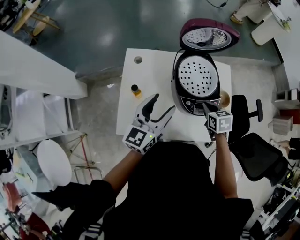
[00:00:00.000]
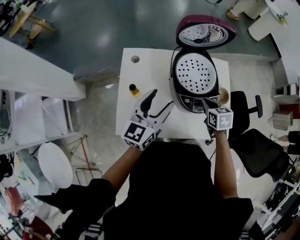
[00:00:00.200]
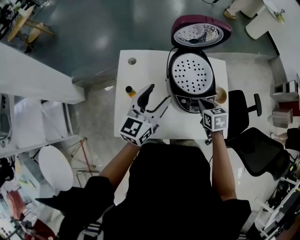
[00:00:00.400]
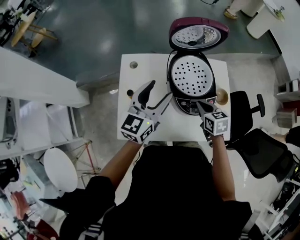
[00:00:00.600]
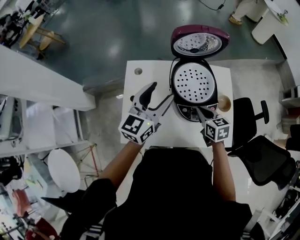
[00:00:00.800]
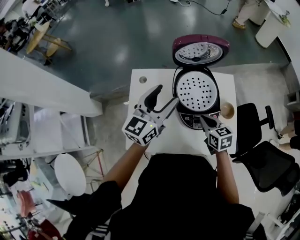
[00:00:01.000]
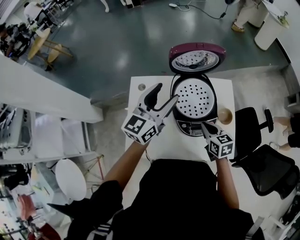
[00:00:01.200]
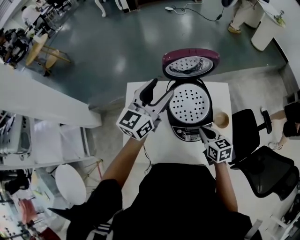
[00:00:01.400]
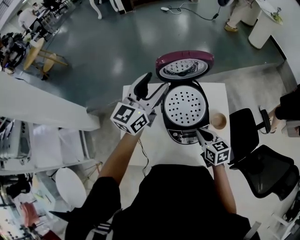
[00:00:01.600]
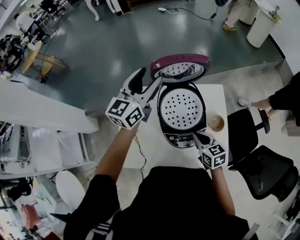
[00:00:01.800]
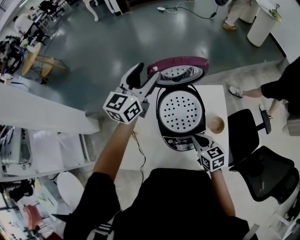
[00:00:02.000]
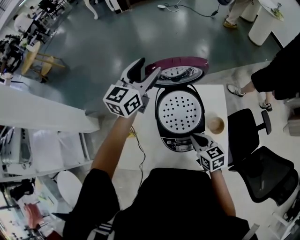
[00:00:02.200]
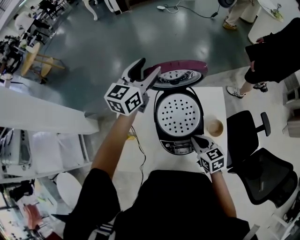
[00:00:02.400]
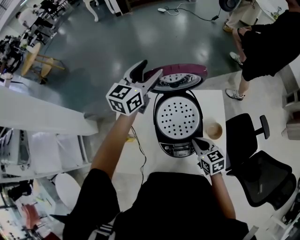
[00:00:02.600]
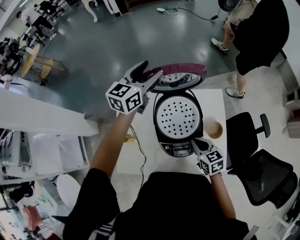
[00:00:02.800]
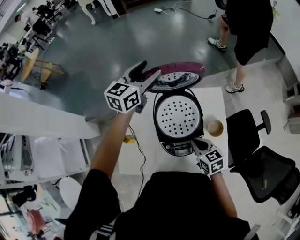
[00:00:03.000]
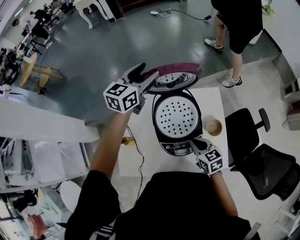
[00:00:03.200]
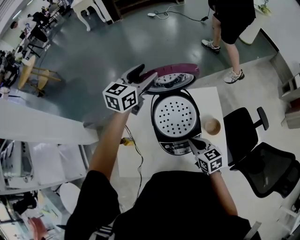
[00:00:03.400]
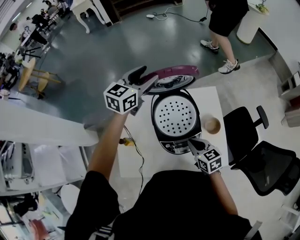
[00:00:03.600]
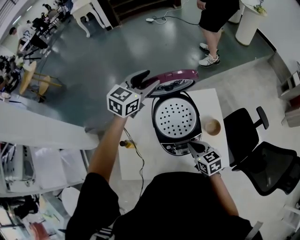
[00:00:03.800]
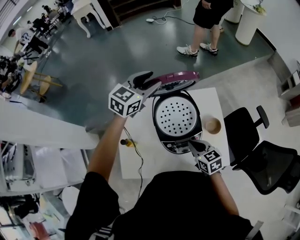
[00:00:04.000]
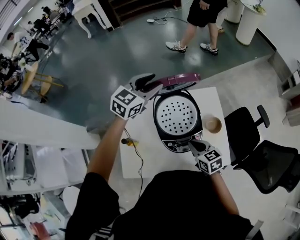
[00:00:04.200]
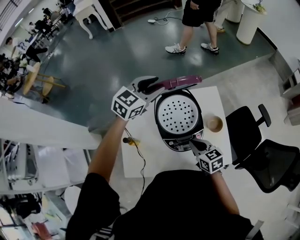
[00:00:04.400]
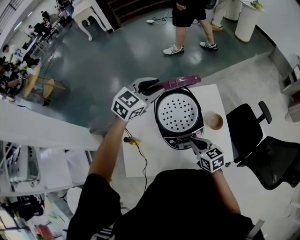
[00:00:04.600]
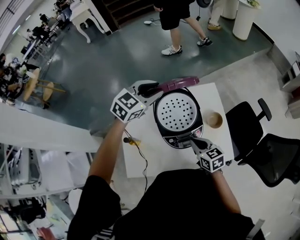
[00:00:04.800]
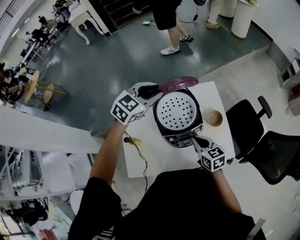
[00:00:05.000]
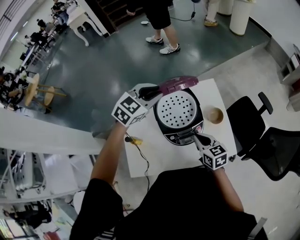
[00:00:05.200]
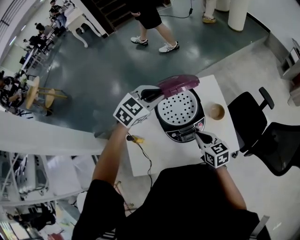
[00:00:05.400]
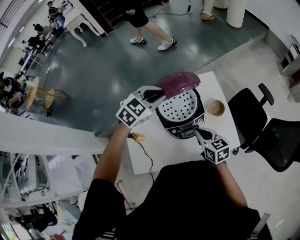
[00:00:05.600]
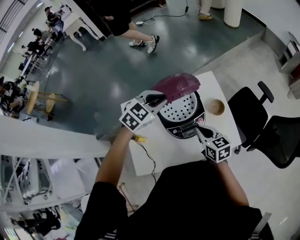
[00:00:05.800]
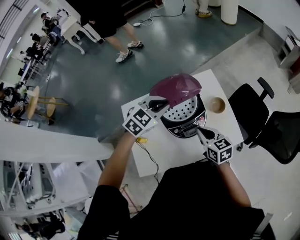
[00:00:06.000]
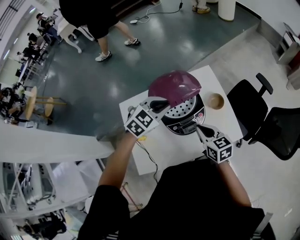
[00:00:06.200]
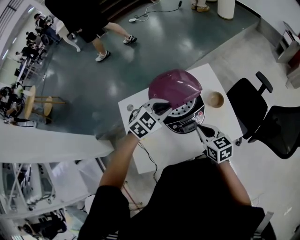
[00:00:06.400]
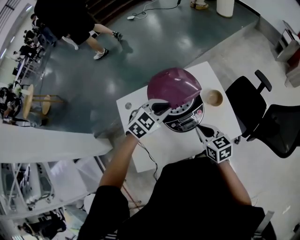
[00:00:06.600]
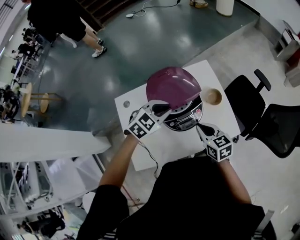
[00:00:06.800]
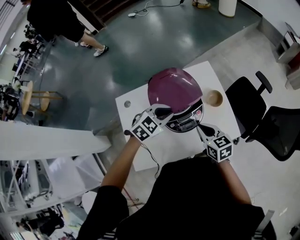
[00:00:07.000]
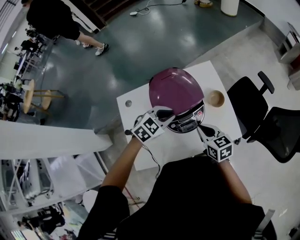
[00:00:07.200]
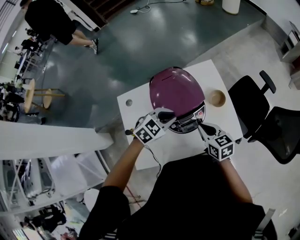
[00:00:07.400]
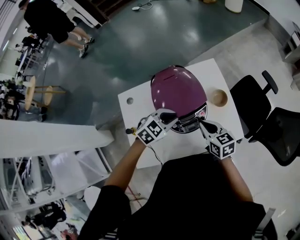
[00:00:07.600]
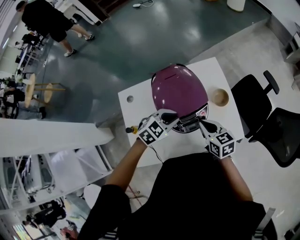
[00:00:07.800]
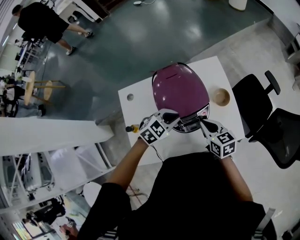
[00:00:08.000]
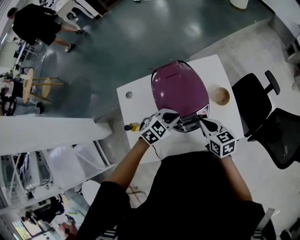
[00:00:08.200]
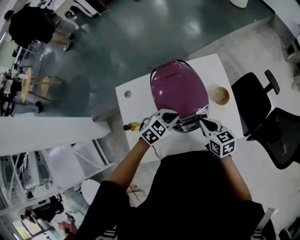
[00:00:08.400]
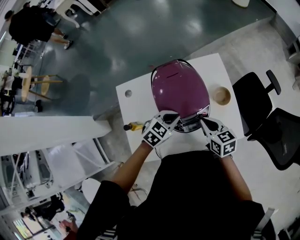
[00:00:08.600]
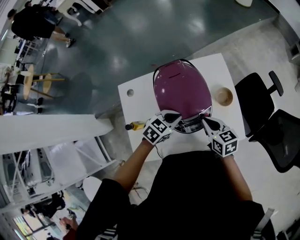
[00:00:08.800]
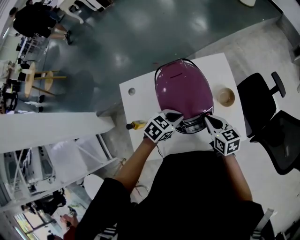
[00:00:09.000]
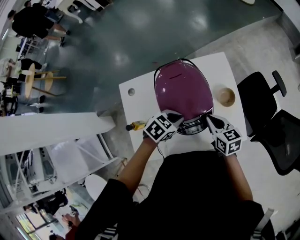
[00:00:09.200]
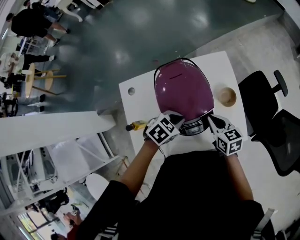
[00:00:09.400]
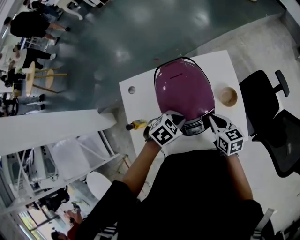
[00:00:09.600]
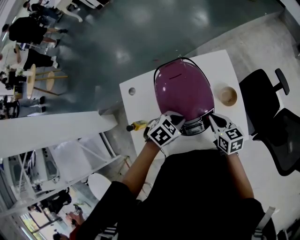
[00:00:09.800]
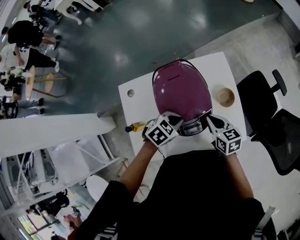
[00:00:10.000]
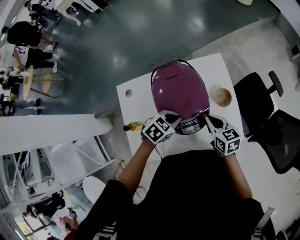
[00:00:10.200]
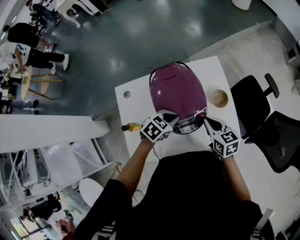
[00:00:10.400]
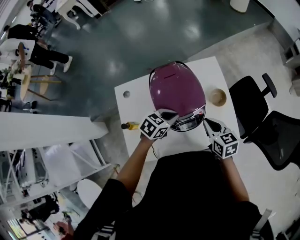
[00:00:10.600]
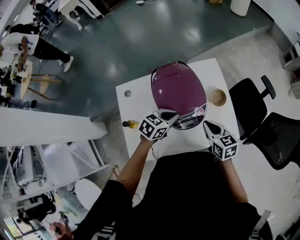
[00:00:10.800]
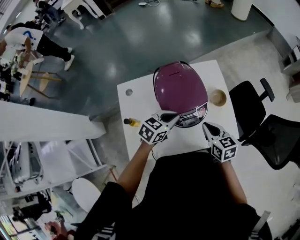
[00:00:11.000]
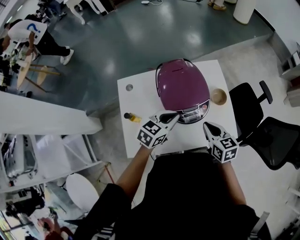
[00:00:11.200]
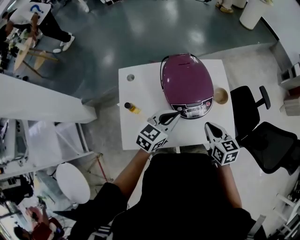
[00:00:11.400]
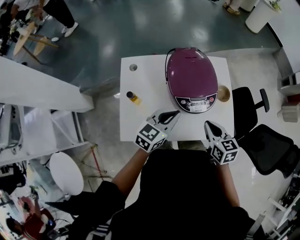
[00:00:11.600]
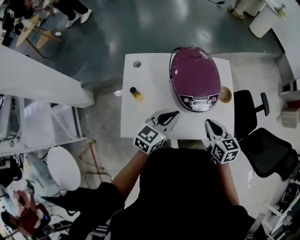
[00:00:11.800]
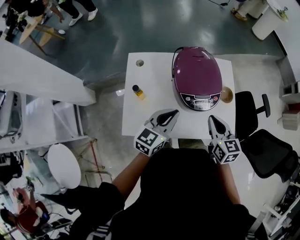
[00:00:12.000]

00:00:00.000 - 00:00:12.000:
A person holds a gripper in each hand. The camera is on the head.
00:00:00.000 - 00:00:01.600: The right gripper ends up some 5 cm from where it was, and rotates about 20 degrees. Meanwhile the left gripper travels forward and upward by roughly 25 cm.
00:00:01.600 - 00:00:03.000: The left gripper moves forward, approximately 15 cm.
00:00:03.000 - 00:00:04.400: The left gripper moves backward, about 10 cm, changes its angle by roughly 30 degrees, and closes up.
00:00:04.400 - 00:00:06.000: The left gripper heads backward, downward and to the right, covering about 15 cm, turns by about 20 degrees, and closes its fingers.
00:00:06.000 - 00:00:07.600: The left gripper moves downward and backward, roughly 10 cm.
00:00:07.600 - 00:00:09.000: The left gripper turns by roughly 20 degrees.
00:00:09.000 - 00:00:10.400: The grippers make only small movements.
00:00:10.400 - 00:00:12.000: The right gripper heads backward and upward, covering about 10 cm. Meanwhile the left gripper moves backward, upward and to the left, some 20 cm, and points its fingers roughly 40 degrees further upward.

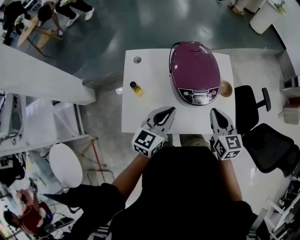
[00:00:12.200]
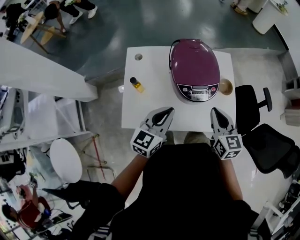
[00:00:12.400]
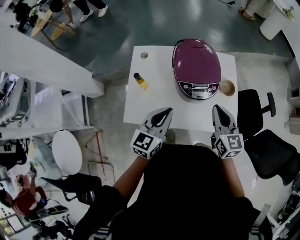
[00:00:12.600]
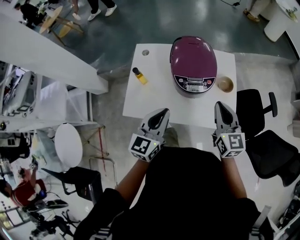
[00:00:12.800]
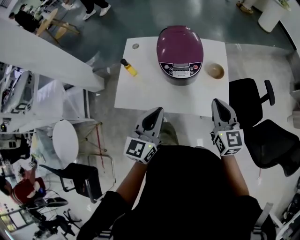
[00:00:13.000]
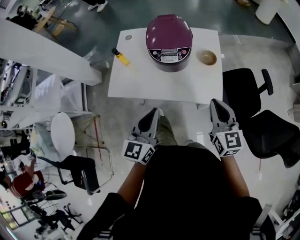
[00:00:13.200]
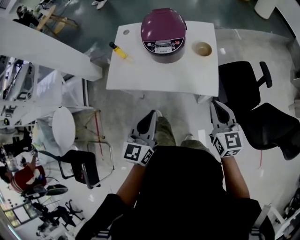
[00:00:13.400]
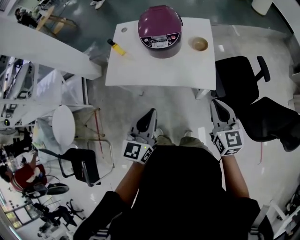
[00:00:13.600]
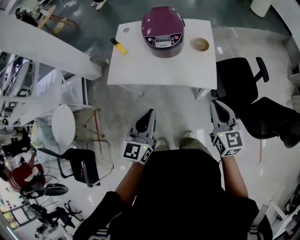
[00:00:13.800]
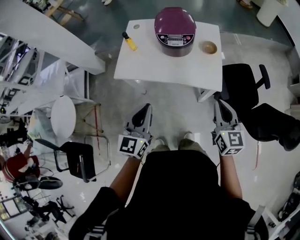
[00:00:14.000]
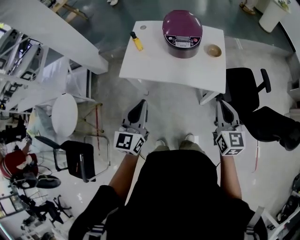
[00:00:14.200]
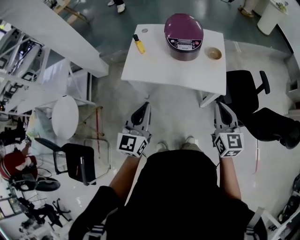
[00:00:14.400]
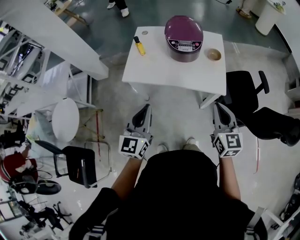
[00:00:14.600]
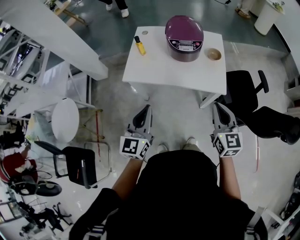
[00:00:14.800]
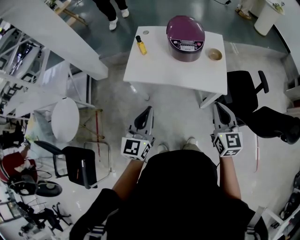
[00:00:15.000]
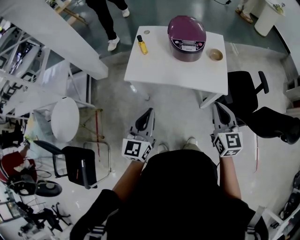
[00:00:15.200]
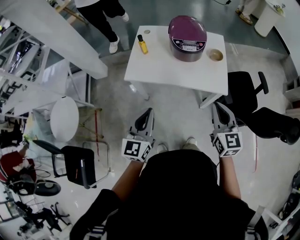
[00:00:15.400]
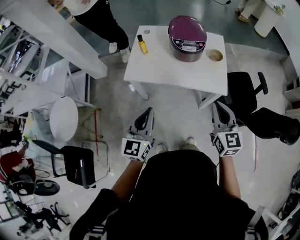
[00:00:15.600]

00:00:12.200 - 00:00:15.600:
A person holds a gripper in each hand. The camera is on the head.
00:00:12.200 - 00:00:13.800: Both grippers travel together backward and to the right, approximately 35 cm. The left gripper turns by approximately 20 degrees.
00:00:13.800 - 00:00:15.600: Both grippers move to the left, approximately 15 cm.

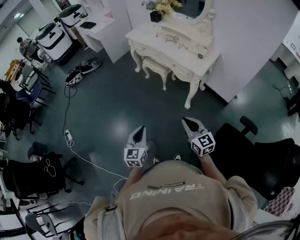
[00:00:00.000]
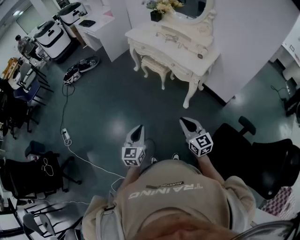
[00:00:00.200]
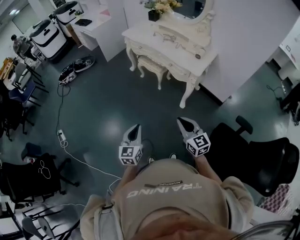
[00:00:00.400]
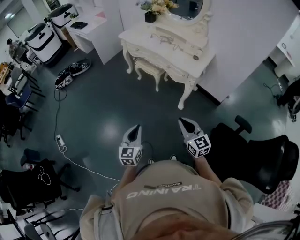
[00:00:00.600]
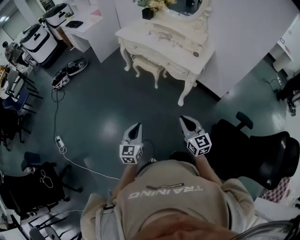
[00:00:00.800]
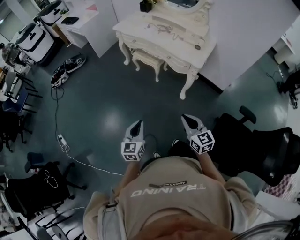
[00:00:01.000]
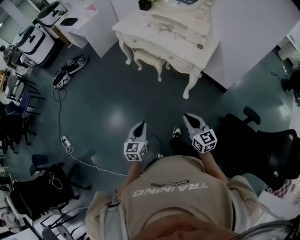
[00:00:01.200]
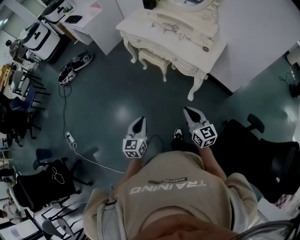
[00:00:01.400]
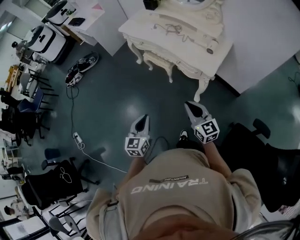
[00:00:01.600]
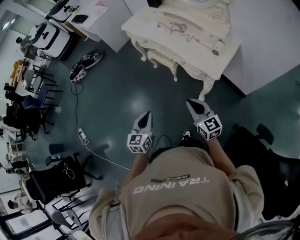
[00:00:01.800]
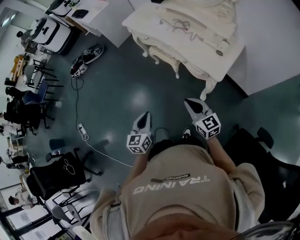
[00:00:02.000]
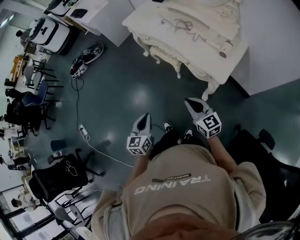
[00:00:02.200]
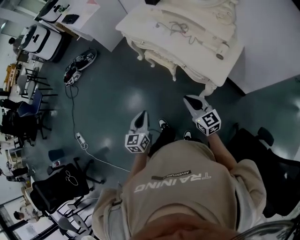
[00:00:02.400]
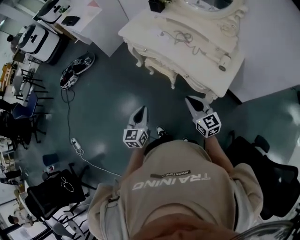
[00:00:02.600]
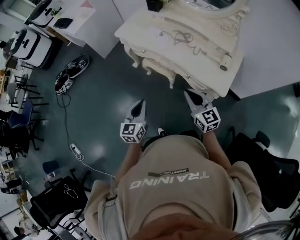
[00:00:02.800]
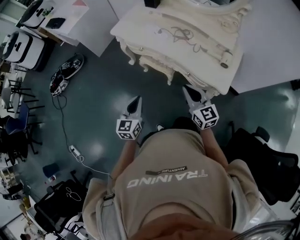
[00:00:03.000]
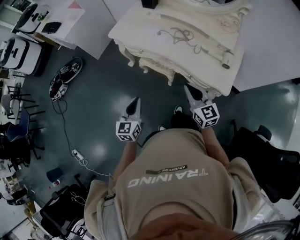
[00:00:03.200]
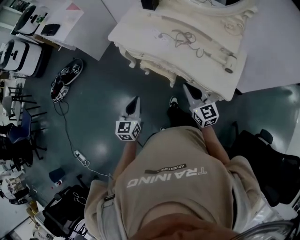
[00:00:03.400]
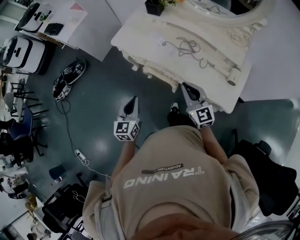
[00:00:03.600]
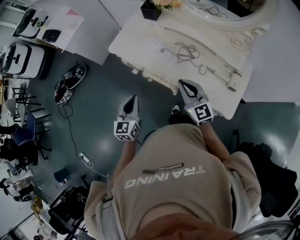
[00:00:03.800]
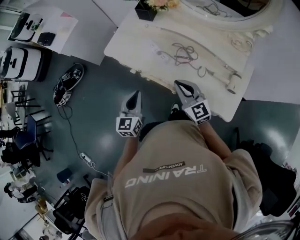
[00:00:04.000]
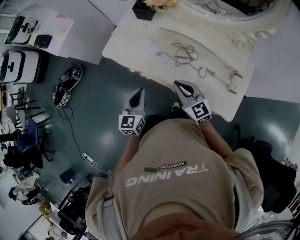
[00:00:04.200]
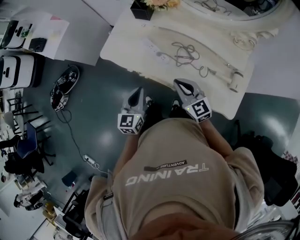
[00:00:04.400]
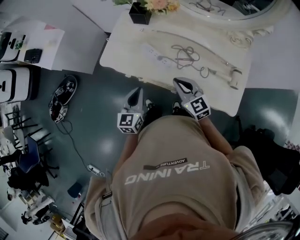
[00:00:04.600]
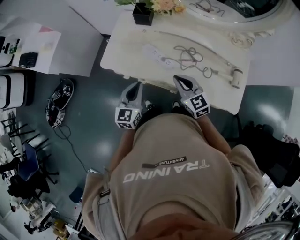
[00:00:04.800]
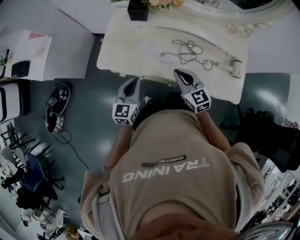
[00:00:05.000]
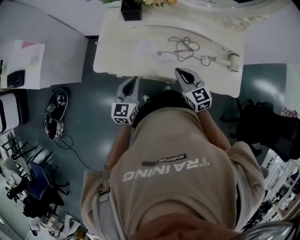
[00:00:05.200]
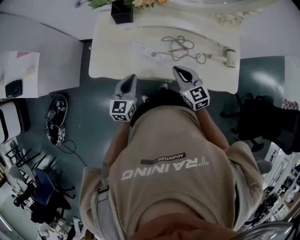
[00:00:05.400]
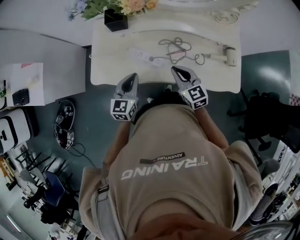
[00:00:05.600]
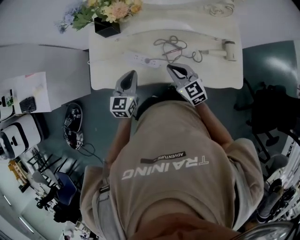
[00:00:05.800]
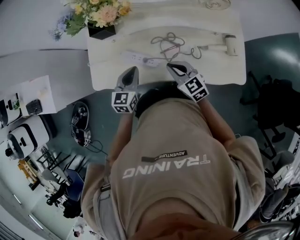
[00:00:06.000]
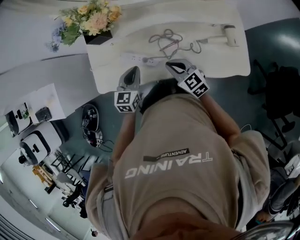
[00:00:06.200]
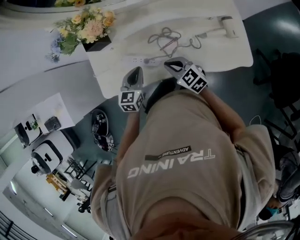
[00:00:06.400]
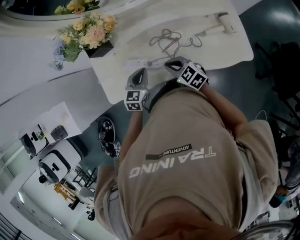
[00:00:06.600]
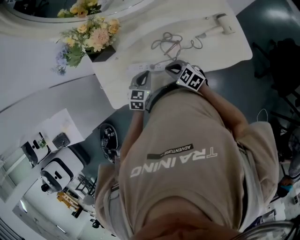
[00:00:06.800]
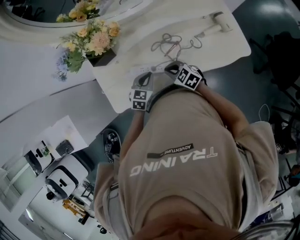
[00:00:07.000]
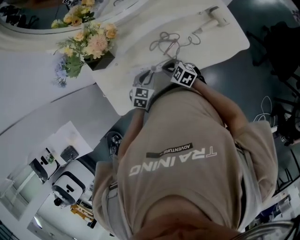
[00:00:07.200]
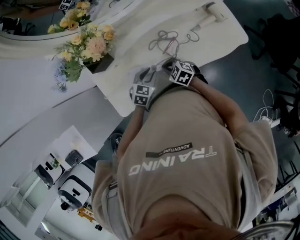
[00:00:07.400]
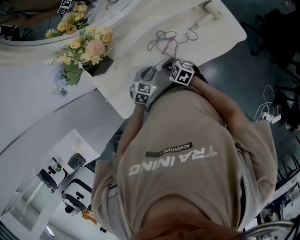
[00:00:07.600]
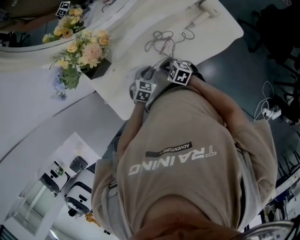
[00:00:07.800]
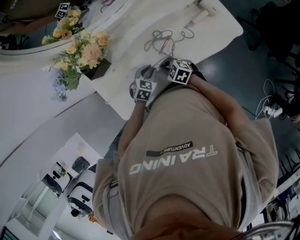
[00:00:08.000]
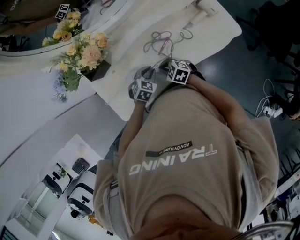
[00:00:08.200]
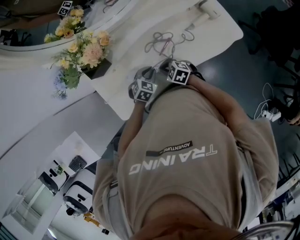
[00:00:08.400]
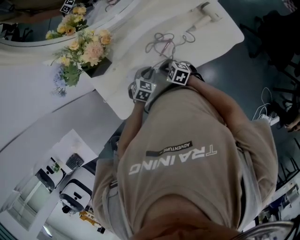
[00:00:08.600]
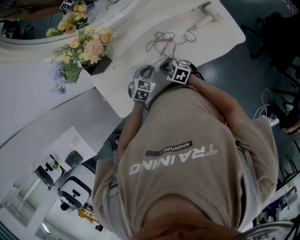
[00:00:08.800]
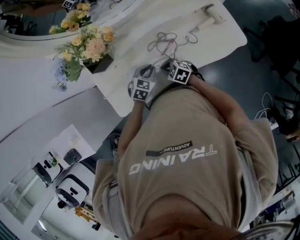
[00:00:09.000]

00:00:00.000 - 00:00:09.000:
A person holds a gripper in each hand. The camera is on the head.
00:00:00.000 - 00:00:01.600: Both grippers travel together forward, approximately 25 cm.
00:00:01.600 - 00:00:03.000: Both grippers travel together forward, roughly 35 cm.
00:00:03.000 - 00:00:04.400: Both grippers travel together forward, about 30 cm.
00:00:04.400 - 00:00:06.000: The left gripper ends up roughly 20 cm from where it was, and rotates about 30 degrees. Meanwhile the right gripper changes place by about 10 cm, and turns by approximately 20 degrees.
00:00:06.000 - 00:00:07.600: The right gripper goes approximately 15 cm downward and to the left, and changes its angle by approximately 20 degrees. The left gripper goes roughly 10 cm downward, changes its angle by some 50 degrees, and opens its fingers.
00:00:07.600 - 00:00:09.000: The grippers move only a little.
